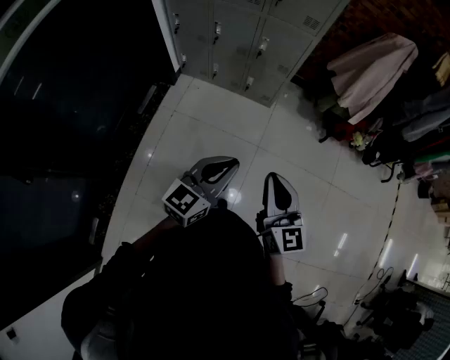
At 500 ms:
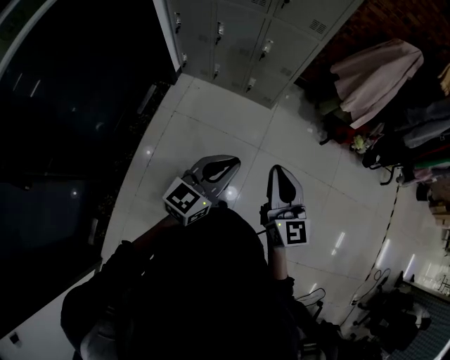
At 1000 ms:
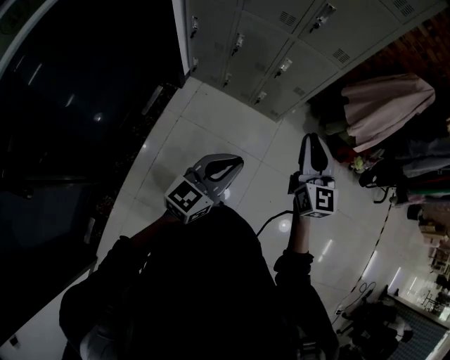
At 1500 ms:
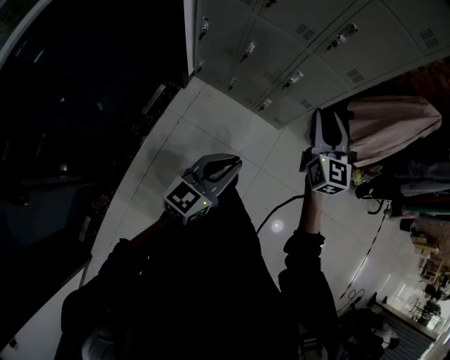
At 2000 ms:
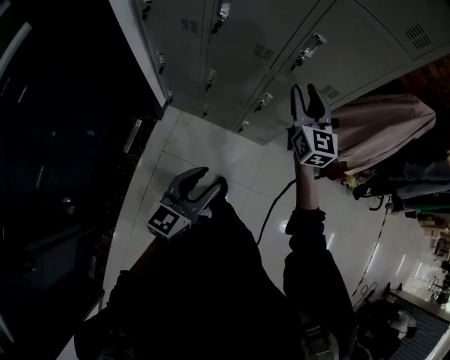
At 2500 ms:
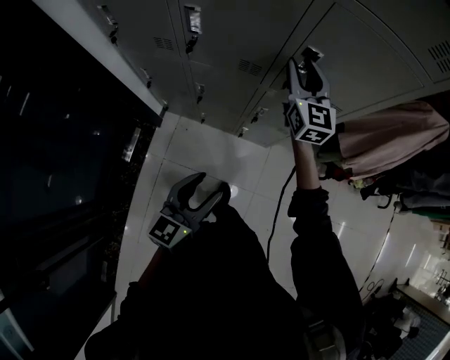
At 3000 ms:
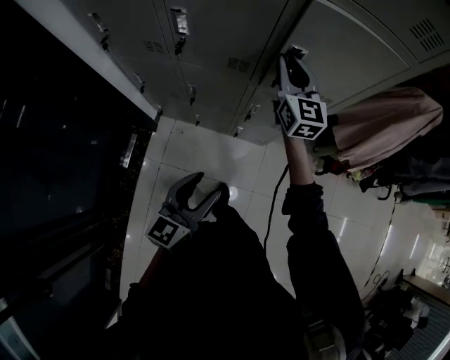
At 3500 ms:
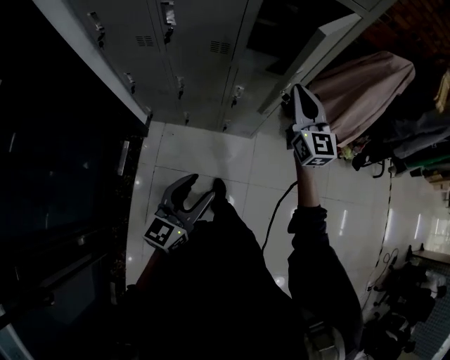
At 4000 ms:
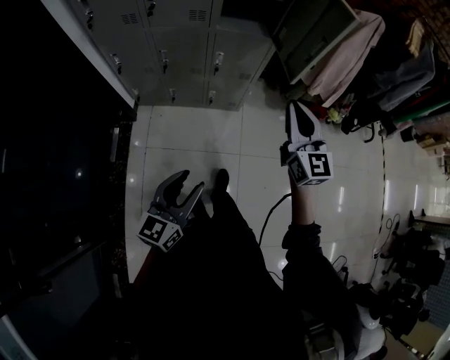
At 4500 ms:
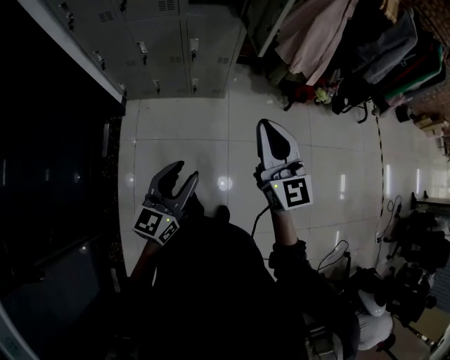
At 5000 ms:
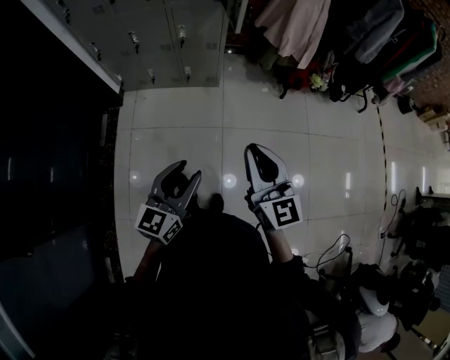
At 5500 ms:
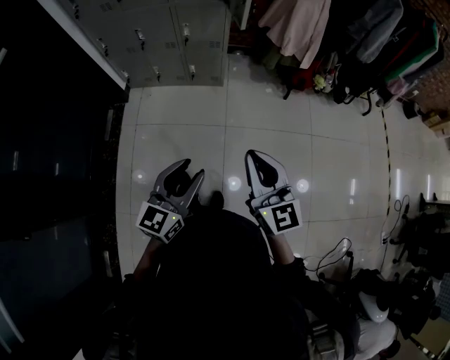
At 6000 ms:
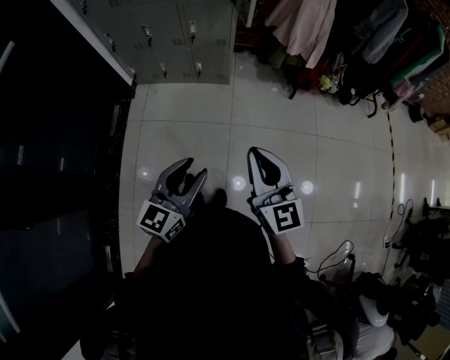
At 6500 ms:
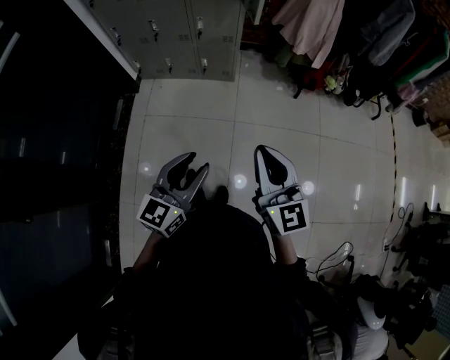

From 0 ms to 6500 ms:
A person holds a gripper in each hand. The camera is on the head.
From 0 ms to 2000 ms: The left gripper goes approximately 40 cm forward and to the left, and opens up. Meanwhile the right gripper heads forward, covering roughly 60 cm, and opens.
From 2000 ms to 4500 ms: The left gripper shifts roughly 25 cm backward and to the right. The right gripper moves backward and to the right, roughly 50 cm, and closes.
From 4500 ms to 6500 ms: The grippers both shift backward and to the right by about 20 cm.

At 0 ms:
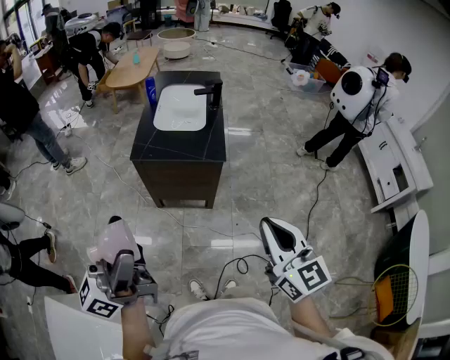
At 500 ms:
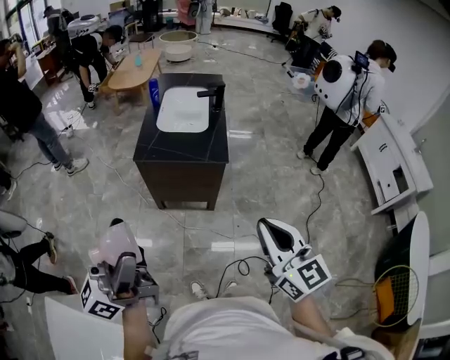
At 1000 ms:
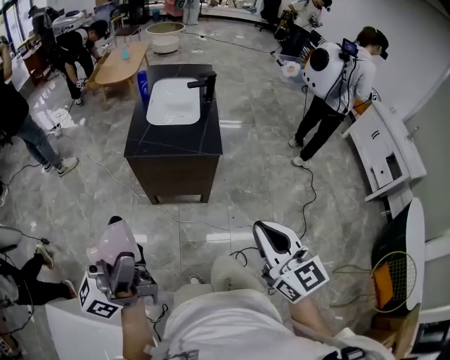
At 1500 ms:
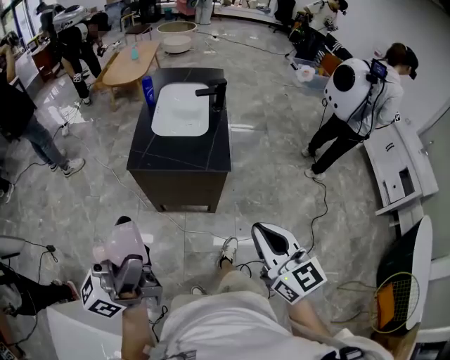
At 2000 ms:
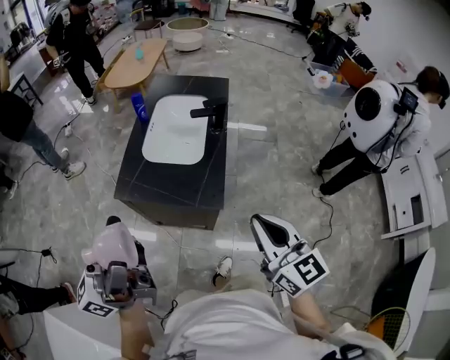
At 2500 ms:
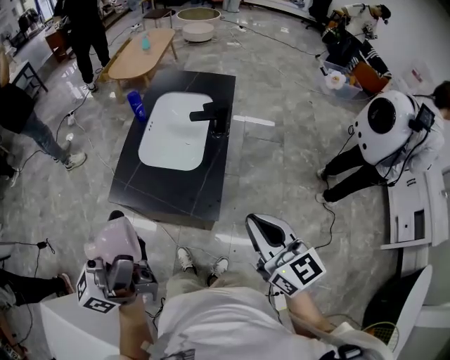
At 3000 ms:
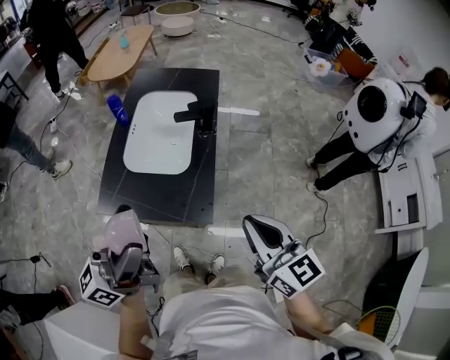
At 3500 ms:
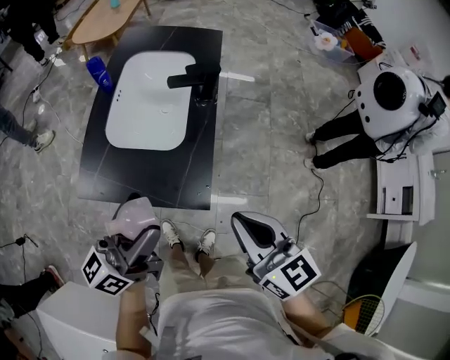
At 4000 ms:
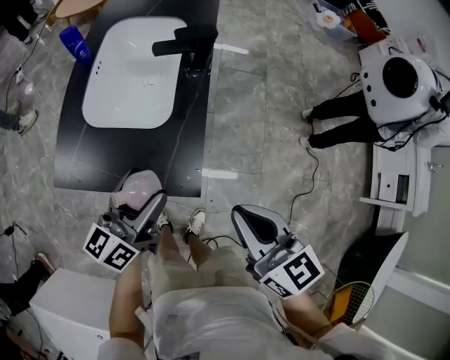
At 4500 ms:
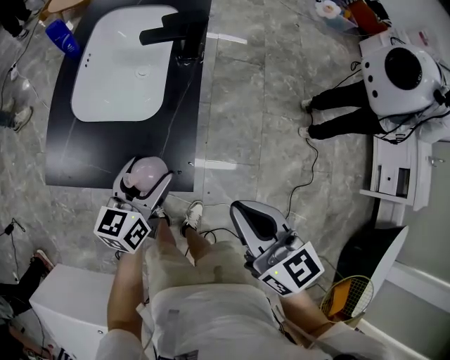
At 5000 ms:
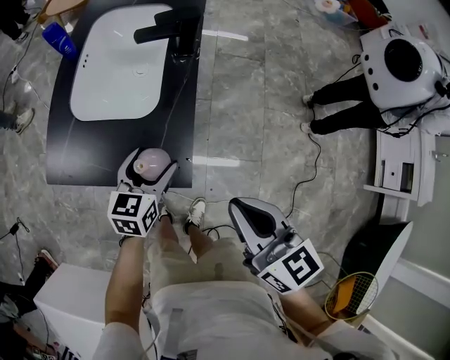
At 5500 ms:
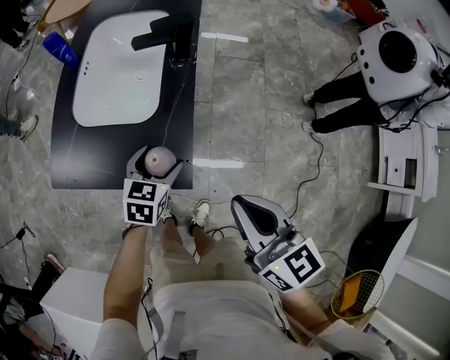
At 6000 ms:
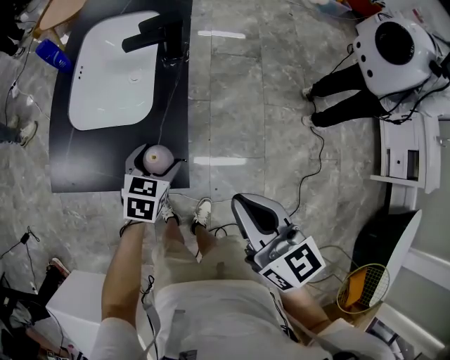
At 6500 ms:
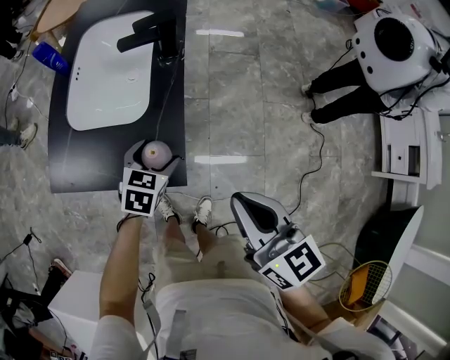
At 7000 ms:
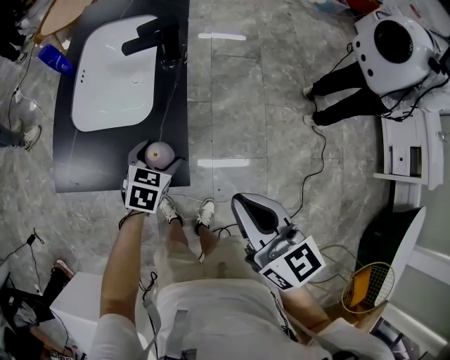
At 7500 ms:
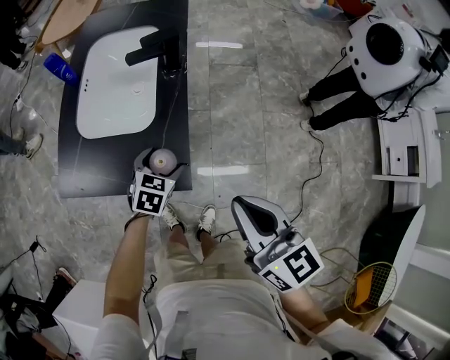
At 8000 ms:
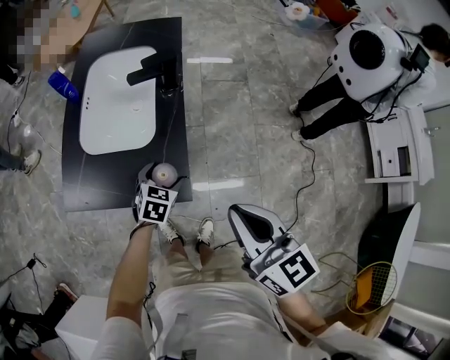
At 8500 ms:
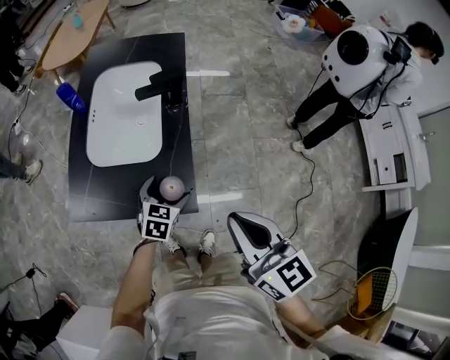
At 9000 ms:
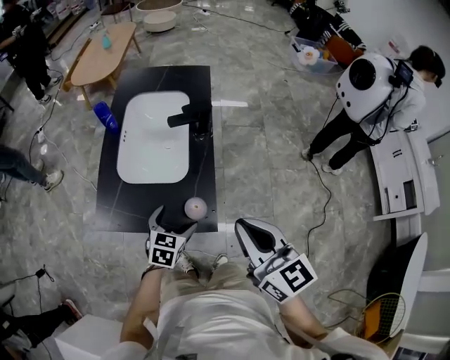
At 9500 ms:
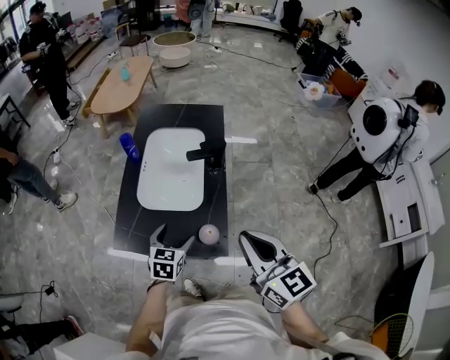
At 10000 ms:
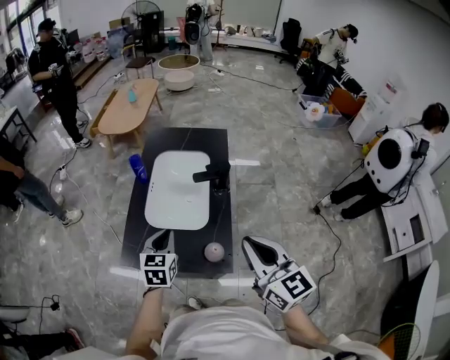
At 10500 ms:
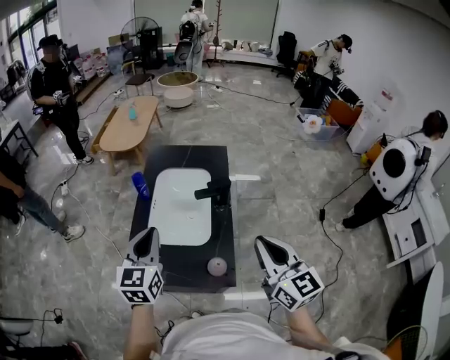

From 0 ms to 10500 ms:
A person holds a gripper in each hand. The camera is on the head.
From 0 ms to 2000 ms: The two grippers go approximately 30 cm forward.
From 2000 ms to 4000 ms: The right gripper travels downward and forward by roughly 20 cm; the left gripper moves downward and forward, some 40 cm, and tilts its fingers roughly 40 degrees downward.
From 4000 ms to 6500 ms: The right gripper travels to the right by some 5 cm, while the left gripper shifts some 15 cm downward and to the right, and tips its fingers downward by some 50 degrees.
From 6500 ms to 8500 ms: The right gripper shifts roughly 5 cm upward.
From 8500 ms to 10500 ms: The left gripper goes some 40 cm upward and to the left, angles its fingers upward, by approximately 30 degrees, and closes up. Meanwhile the right gripper heads upward and forward, covering some 15 cm.

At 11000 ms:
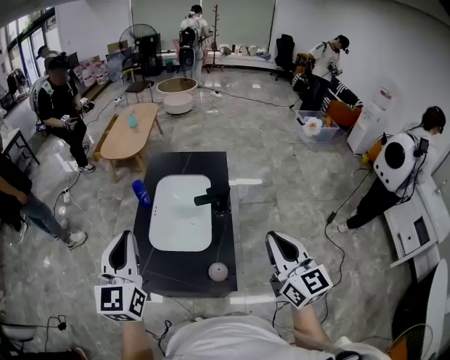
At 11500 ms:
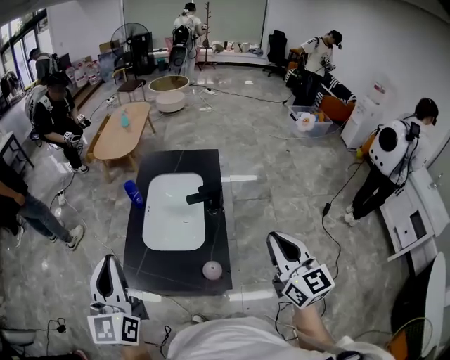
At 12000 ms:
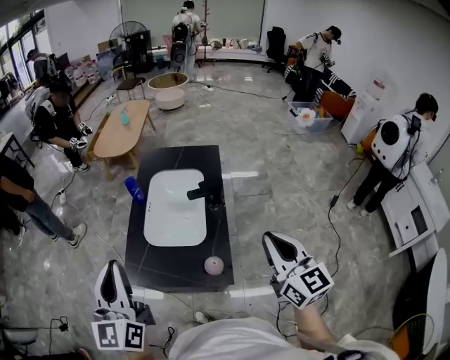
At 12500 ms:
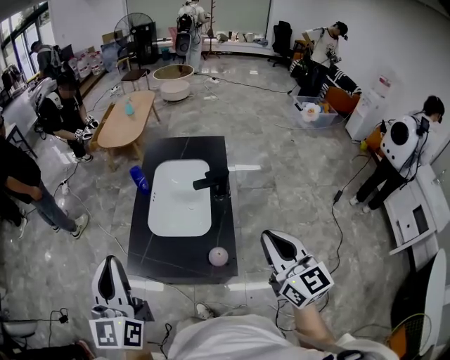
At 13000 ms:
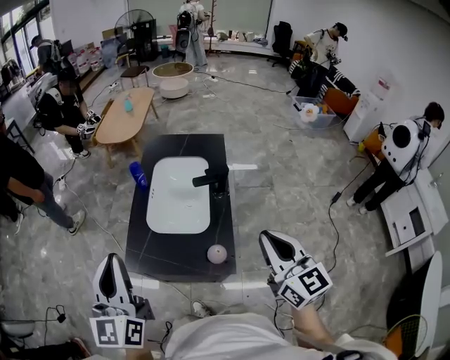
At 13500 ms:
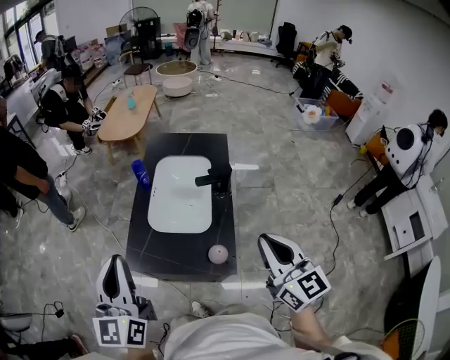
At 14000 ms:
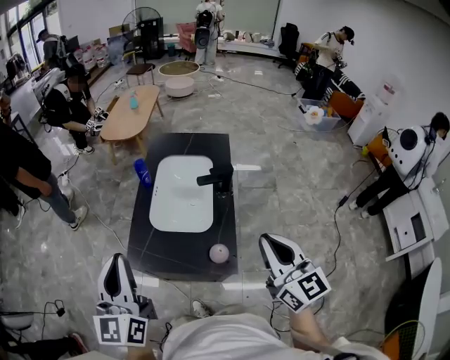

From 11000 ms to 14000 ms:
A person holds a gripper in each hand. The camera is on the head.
From 11000 ms to 12500 ms: The left gripper heads backward, covering about 10 cm.
From 12500 ms to 14000 ms: The grippers move only a little.

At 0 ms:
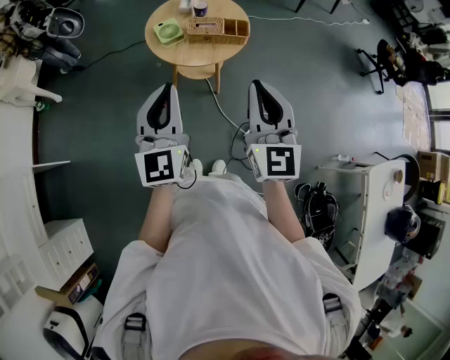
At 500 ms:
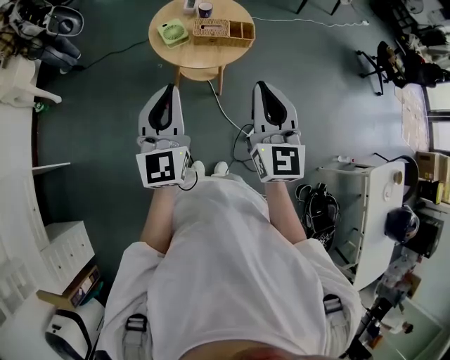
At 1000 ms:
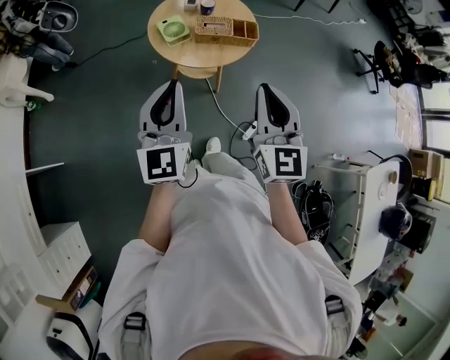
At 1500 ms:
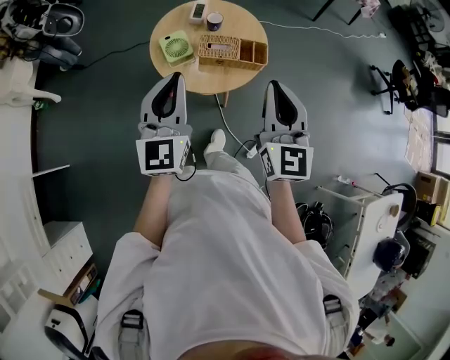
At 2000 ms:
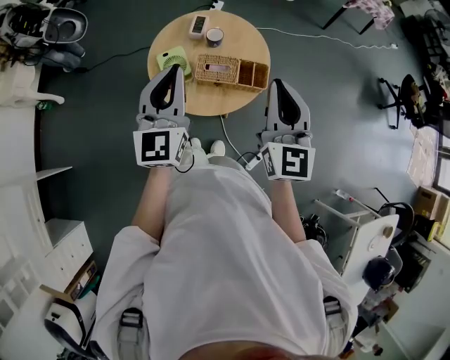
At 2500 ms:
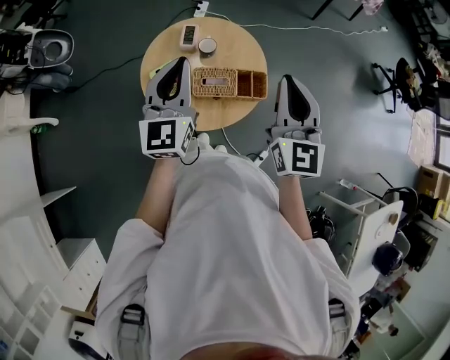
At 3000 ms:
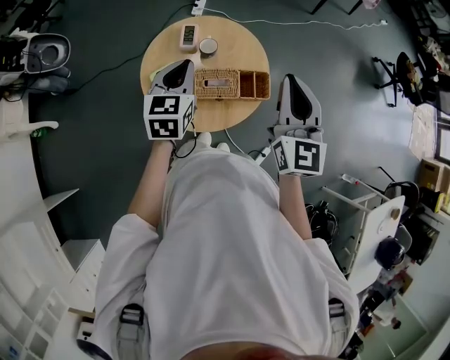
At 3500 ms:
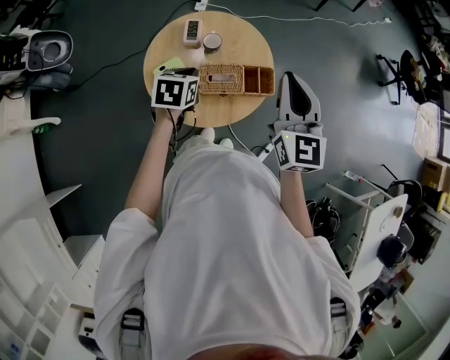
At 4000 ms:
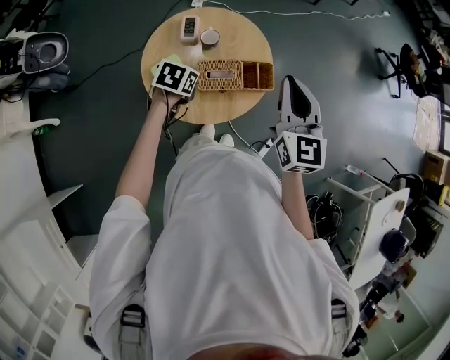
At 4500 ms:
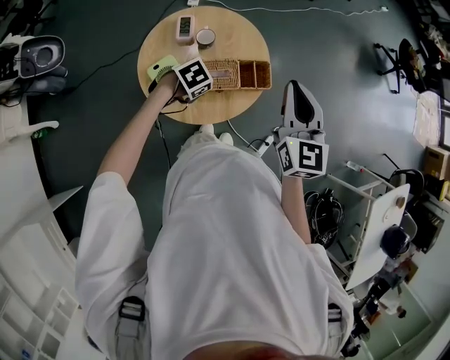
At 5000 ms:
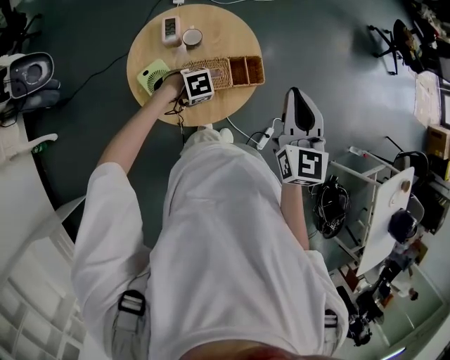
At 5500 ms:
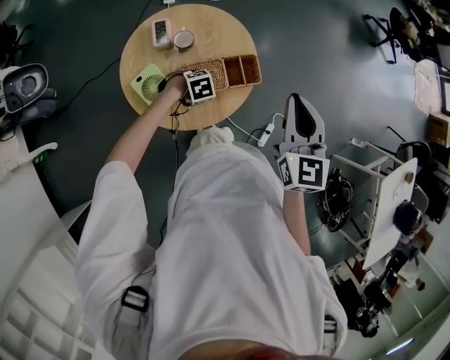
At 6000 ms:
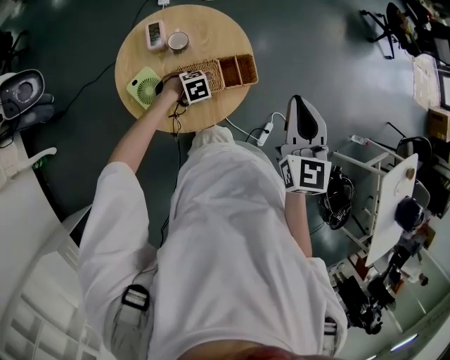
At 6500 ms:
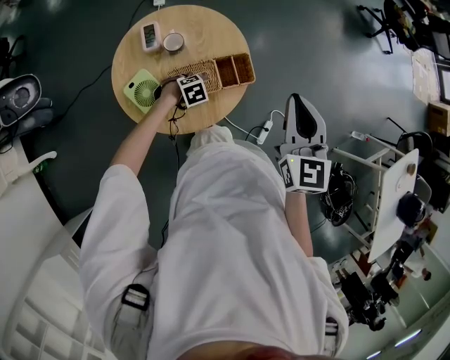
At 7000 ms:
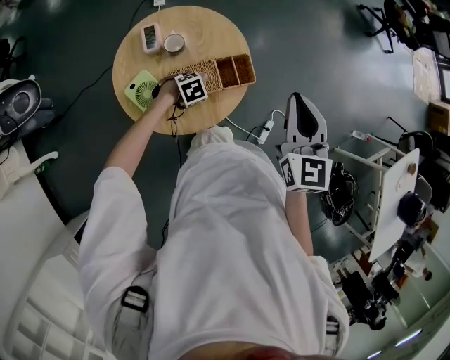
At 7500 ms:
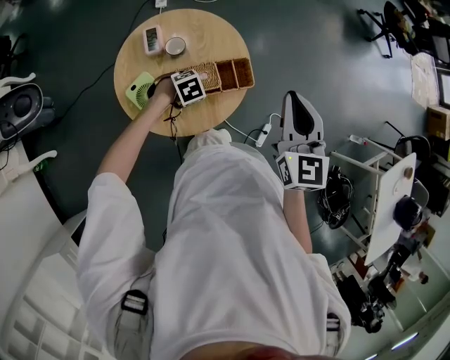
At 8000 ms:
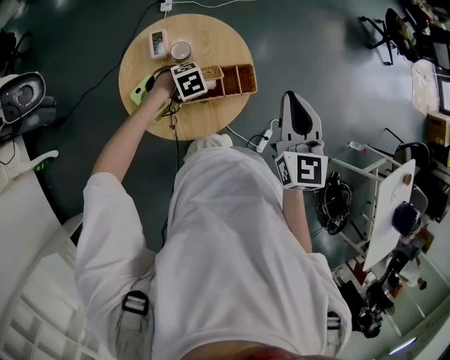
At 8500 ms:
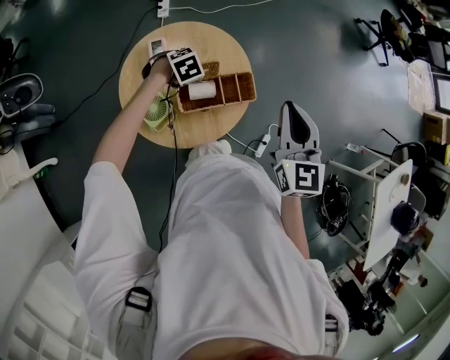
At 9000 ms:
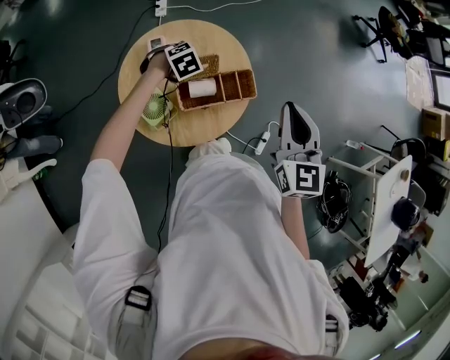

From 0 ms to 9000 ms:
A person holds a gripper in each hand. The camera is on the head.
From 0 ms to 2000 ms: Both grippers travel together forward, approximately 35 cm.
From 2000 ms to 4500 ms: The right gripper shifts by about 10 cm; the left gripper is displaced downward by about 30 cm, and angles its fingers downward, by some 70 degrees.
From 4500 ms to 7000 ms: The right gripper shifts by about 5 cm; the left gripper is displaced downward by about 10 cm, changes its angle by roughly 20 degrees, and opens up.
From 7000 ms to 9000 ms: The left gripper ends up some 20 cm from where it was, and closes up.
